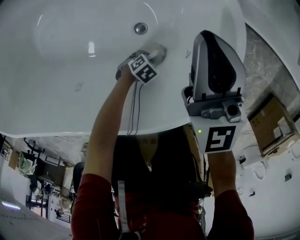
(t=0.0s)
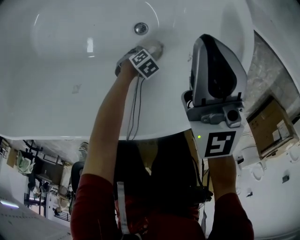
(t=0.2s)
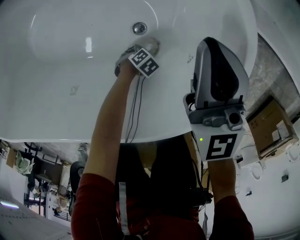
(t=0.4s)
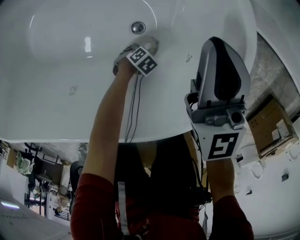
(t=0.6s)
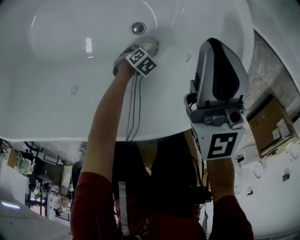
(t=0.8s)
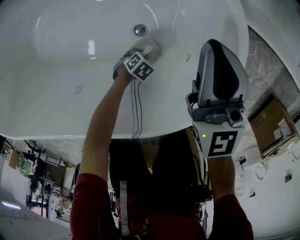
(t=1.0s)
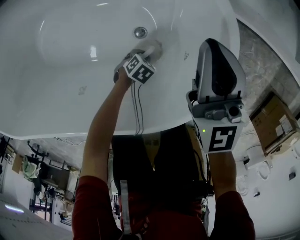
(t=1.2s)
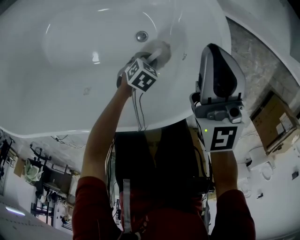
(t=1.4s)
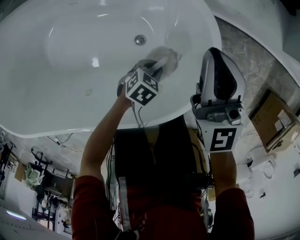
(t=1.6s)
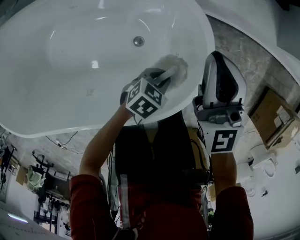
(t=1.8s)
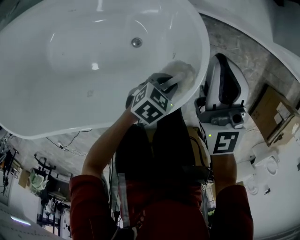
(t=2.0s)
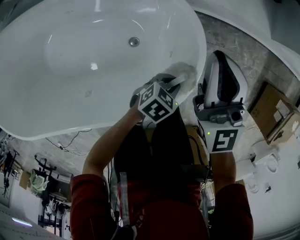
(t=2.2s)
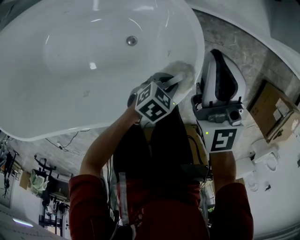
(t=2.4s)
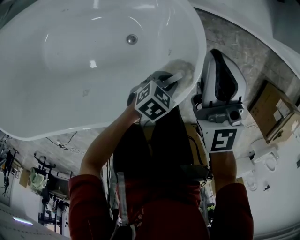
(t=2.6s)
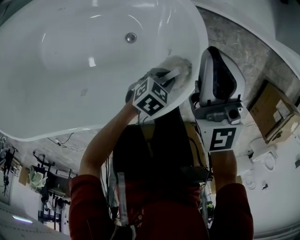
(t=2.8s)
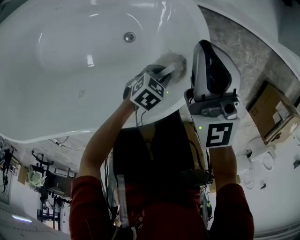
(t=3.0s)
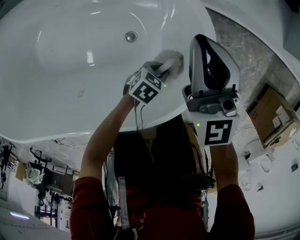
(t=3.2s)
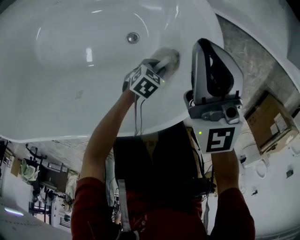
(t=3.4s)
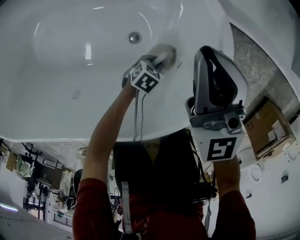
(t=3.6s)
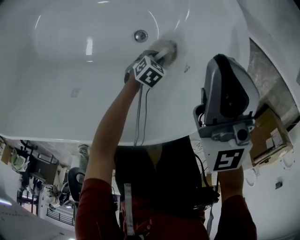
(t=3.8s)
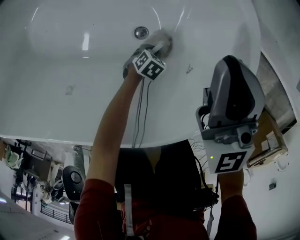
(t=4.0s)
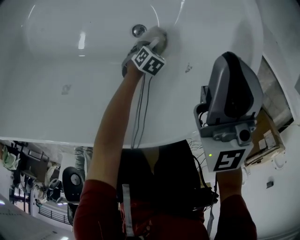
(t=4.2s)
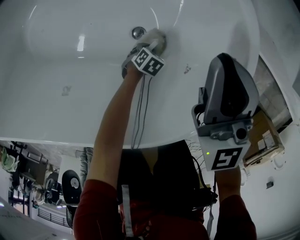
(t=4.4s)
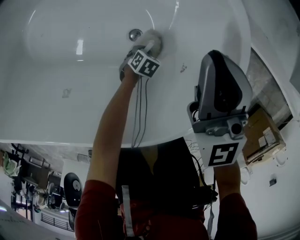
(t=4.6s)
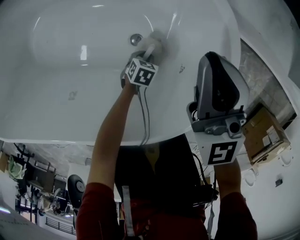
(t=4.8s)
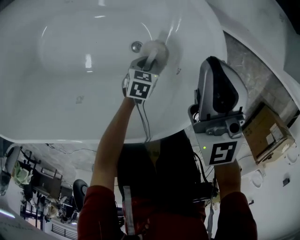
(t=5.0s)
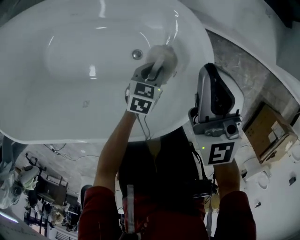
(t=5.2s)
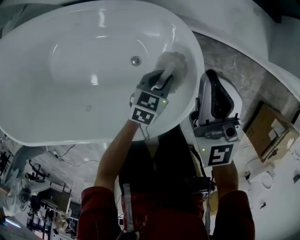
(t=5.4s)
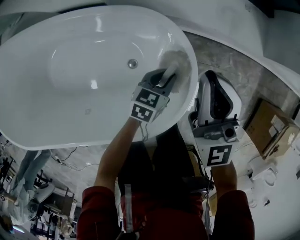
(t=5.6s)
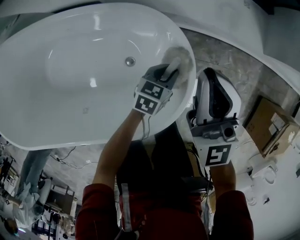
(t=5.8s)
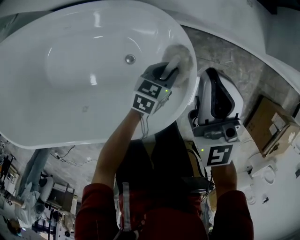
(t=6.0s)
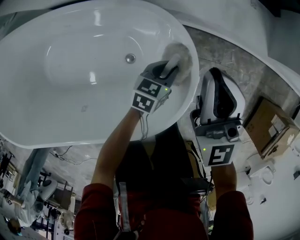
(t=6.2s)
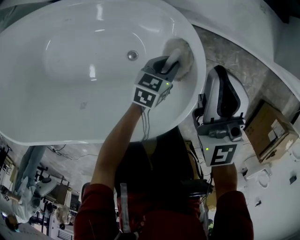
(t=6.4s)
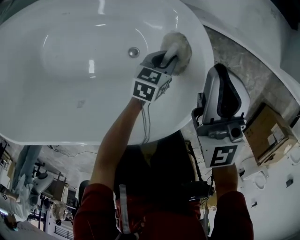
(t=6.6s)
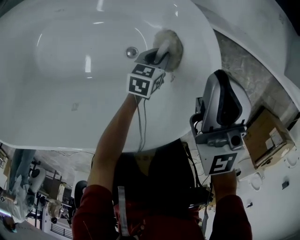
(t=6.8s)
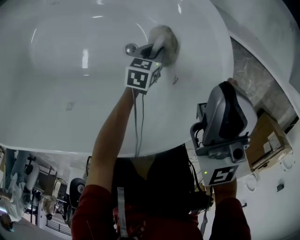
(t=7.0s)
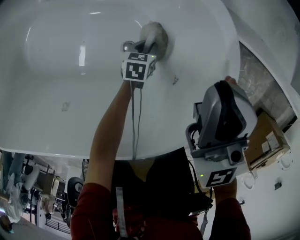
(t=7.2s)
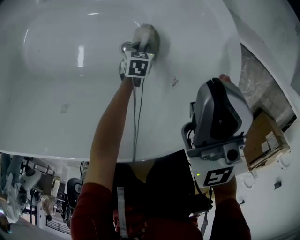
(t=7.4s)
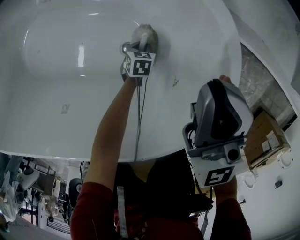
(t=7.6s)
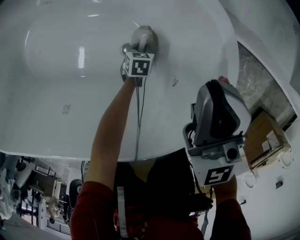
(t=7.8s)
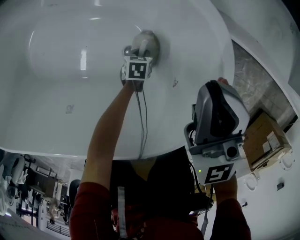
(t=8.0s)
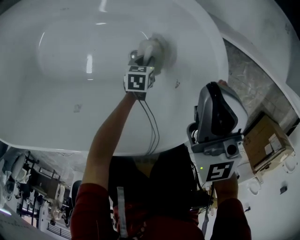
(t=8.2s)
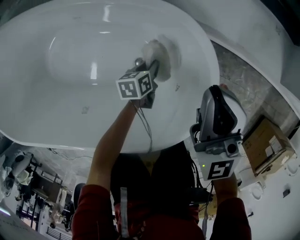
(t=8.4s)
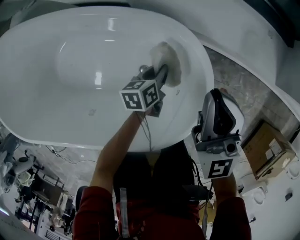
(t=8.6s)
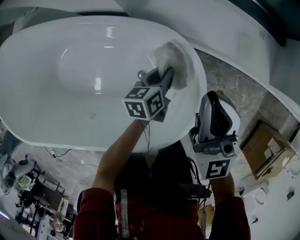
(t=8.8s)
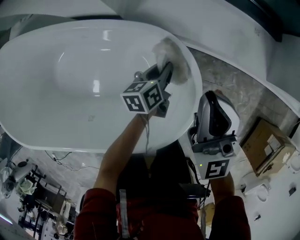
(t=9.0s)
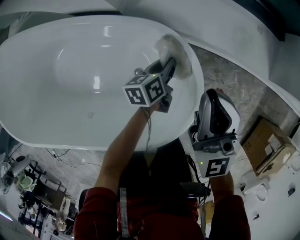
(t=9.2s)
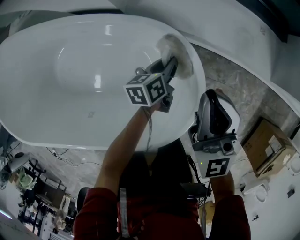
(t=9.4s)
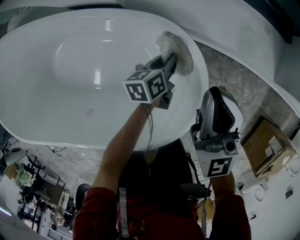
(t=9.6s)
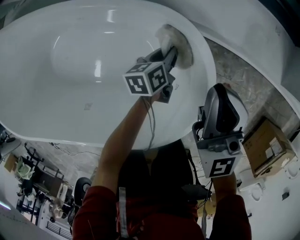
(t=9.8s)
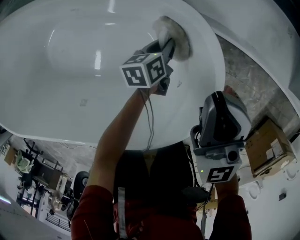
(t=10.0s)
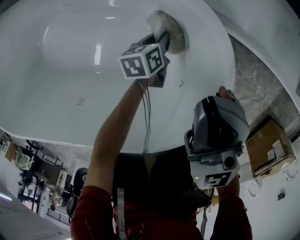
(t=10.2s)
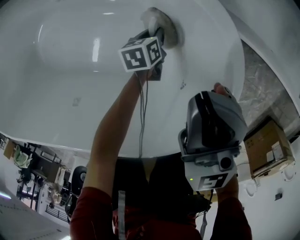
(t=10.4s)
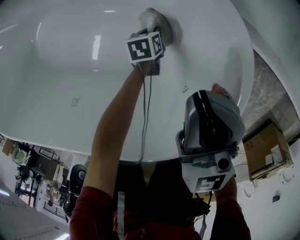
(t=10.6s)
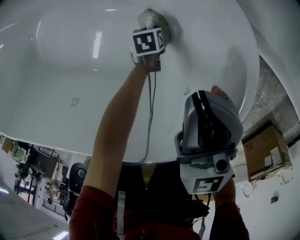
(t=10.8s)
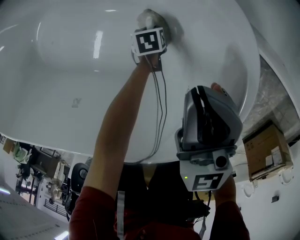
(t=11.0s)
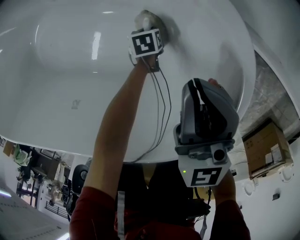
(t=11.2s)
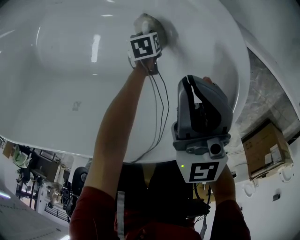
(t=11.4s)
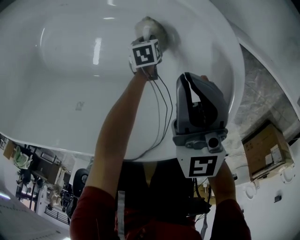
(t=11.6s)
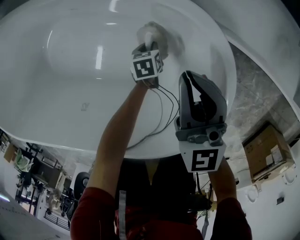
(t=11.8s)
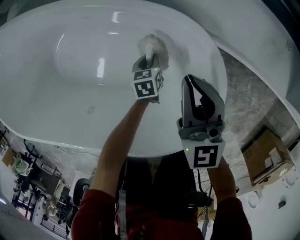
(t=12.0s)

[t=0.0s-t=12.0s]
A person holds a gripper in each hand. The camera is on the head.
t=0.0s to t=1.6s: The left gripper travels upward by approximately 20 cm. The right gripper goes about 10 cm upward.
t=1.6s to t=3.0s: The left gripper heads to the right, covering about 10 cm, and goes upward and returns, approximately 10 cm each way.
t=3.0s to t=4.4s: The right gripper goes about 10 cm downward. The left gripper is displaced downward by about 25 cm, and changes its angle by approximately 30 degrees.
t=4.4s to t=6.0s: The right gripper shifts some 15 cm upward, while the left gripper moves upward, about 35 cm, and tilts its fingers approximately 40 degrees upward.
t=6.0s to t=7.6s: The left gripper heads downward, covering roughly 35 cm, and angles its fingers downward, by about 30 degrees; the right gripper moves downward and to the left, some 15 cm.
t=7.6s to t=9.0s: The left gripper is displaced upward by about 35 cm, and tilts its fingers roughly 30 degrees upward. Meanwhile the right gripper is displaced upward by approximately 15 cm.
t=9.0s to t=10.4s: The right gripper travels downward by approximately 15 cm, while the left gripper goes approximately 25 cm downward, and changes its angle by roughly 20 degrees.
t=10.4s to t=12.0s: The left gripper travels upward by roughly 10 cm.

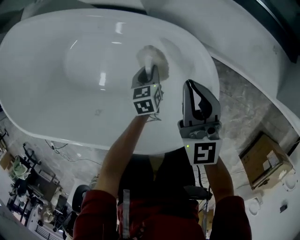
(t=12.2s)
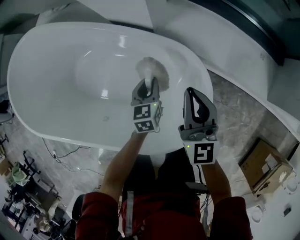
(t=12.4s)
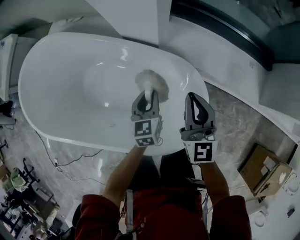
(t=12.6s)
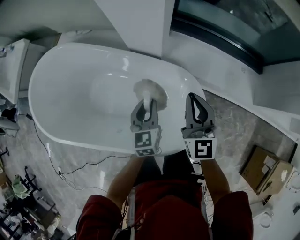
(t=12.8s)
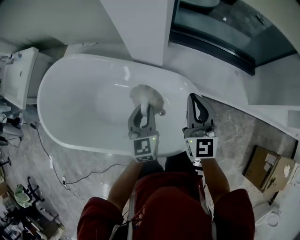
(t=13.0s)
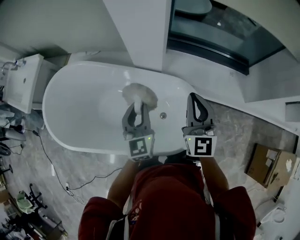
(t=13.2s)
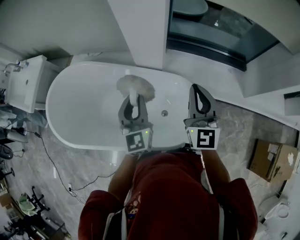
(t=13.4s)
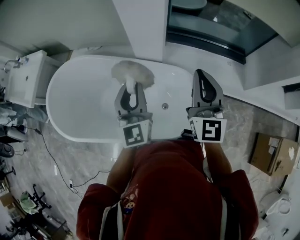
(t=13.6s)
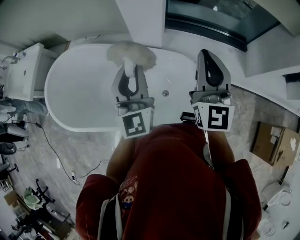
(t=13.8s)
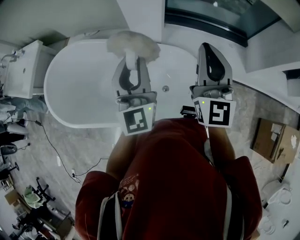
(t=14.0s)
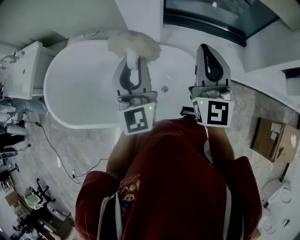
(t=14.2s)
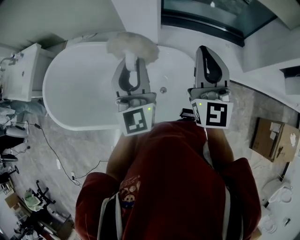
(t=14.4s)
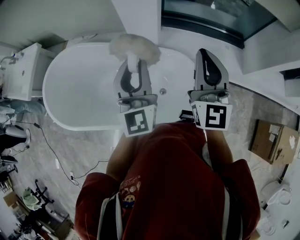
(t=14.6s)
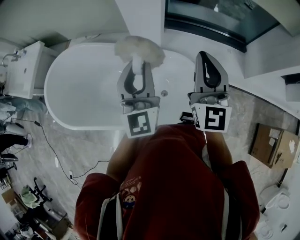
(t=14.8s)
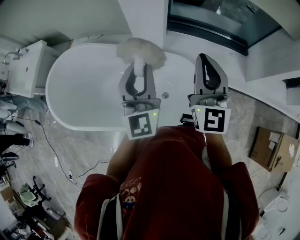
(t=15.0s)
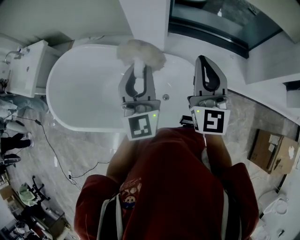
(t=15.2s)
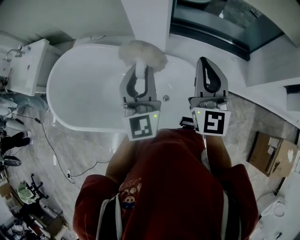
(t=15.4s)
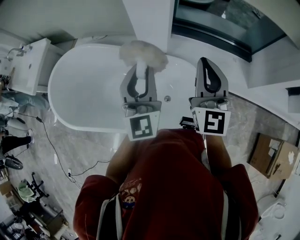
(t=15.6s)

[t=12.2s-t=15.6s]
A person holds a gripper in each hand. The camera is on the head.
t=12.2s to t=13.8s: The two grippers go some 60 cm upward. The right gripper swivels approximately 30 degrees, while the left gripper tips its fingers upward by some 60 degrees.
t=13.8s to t=15.6s: The grippers move only a little.

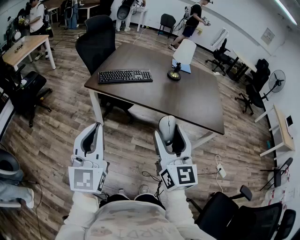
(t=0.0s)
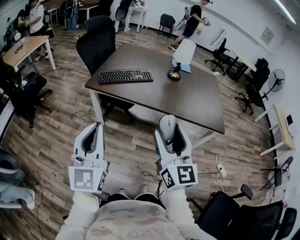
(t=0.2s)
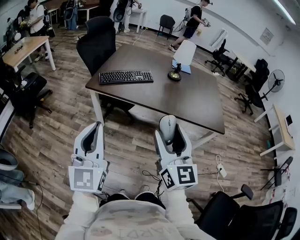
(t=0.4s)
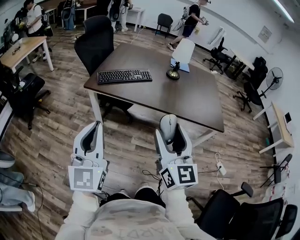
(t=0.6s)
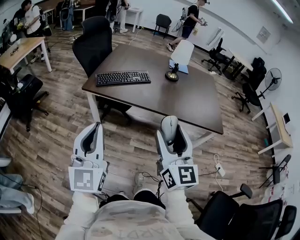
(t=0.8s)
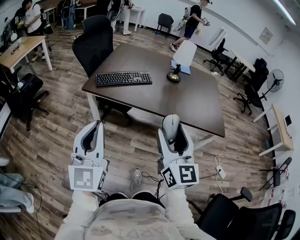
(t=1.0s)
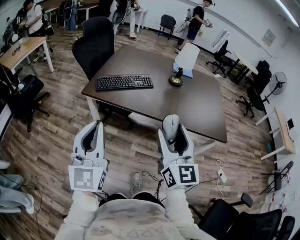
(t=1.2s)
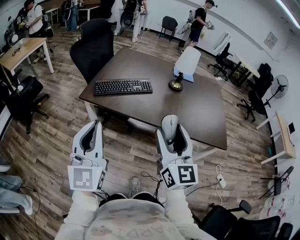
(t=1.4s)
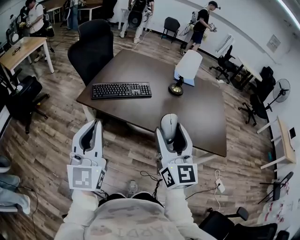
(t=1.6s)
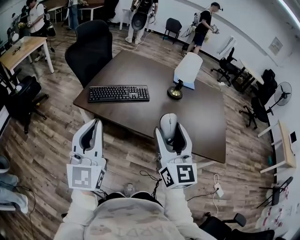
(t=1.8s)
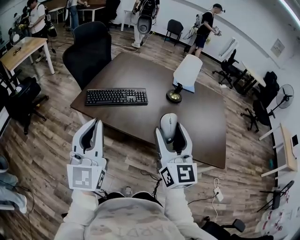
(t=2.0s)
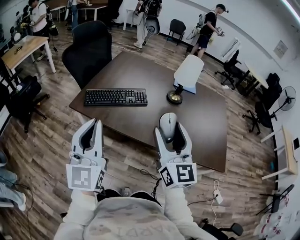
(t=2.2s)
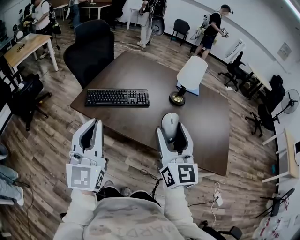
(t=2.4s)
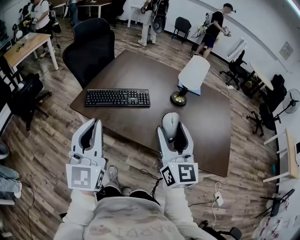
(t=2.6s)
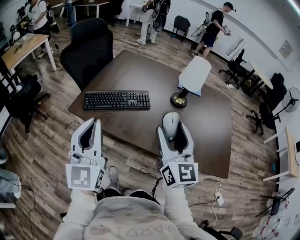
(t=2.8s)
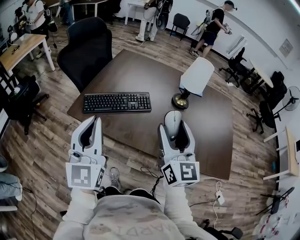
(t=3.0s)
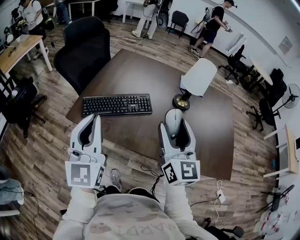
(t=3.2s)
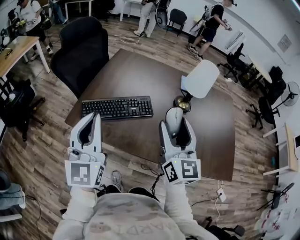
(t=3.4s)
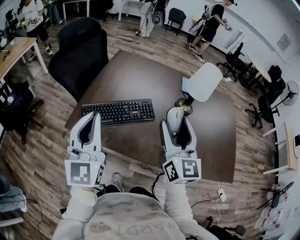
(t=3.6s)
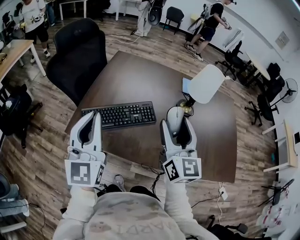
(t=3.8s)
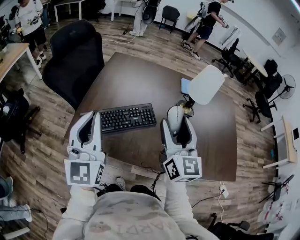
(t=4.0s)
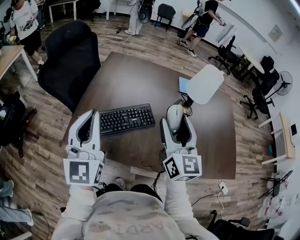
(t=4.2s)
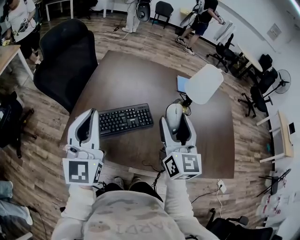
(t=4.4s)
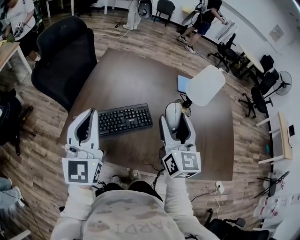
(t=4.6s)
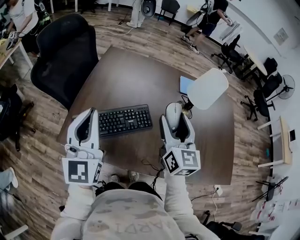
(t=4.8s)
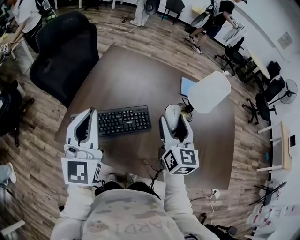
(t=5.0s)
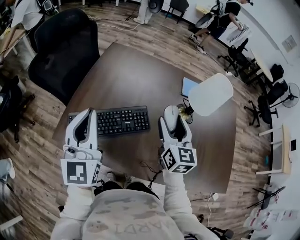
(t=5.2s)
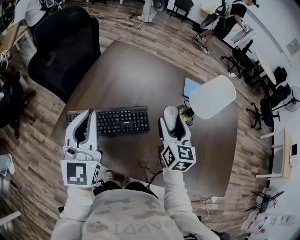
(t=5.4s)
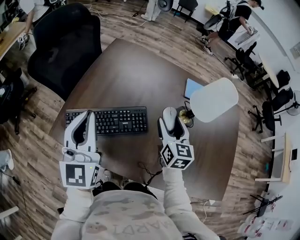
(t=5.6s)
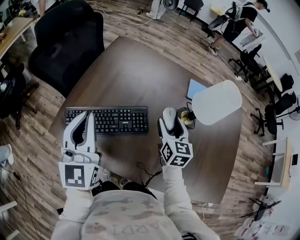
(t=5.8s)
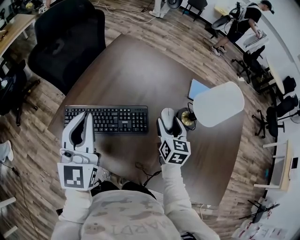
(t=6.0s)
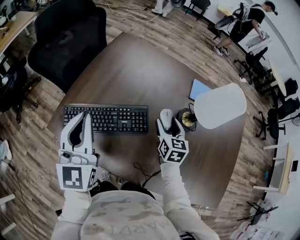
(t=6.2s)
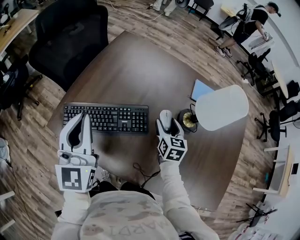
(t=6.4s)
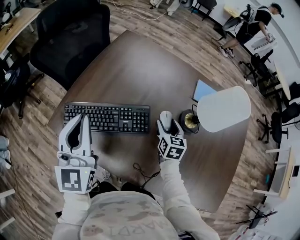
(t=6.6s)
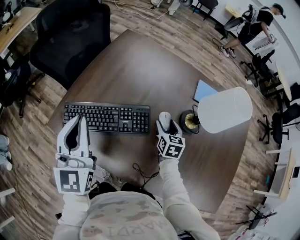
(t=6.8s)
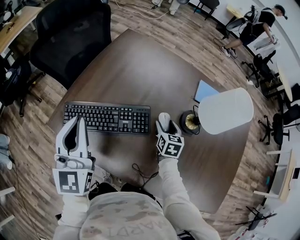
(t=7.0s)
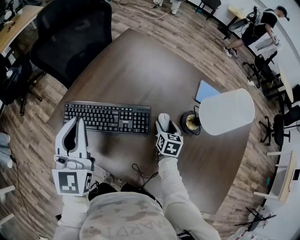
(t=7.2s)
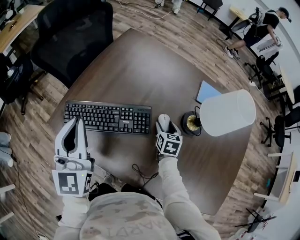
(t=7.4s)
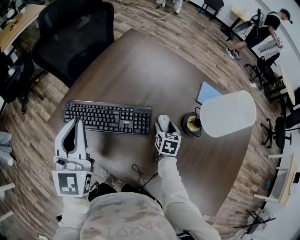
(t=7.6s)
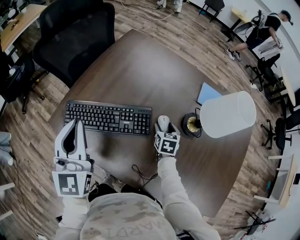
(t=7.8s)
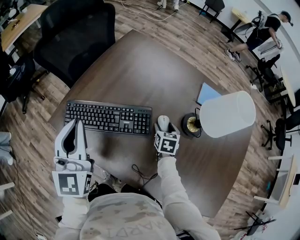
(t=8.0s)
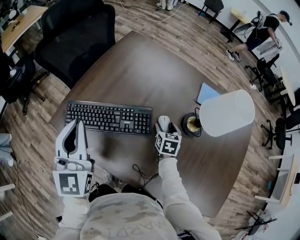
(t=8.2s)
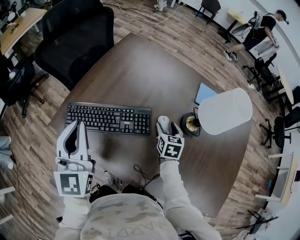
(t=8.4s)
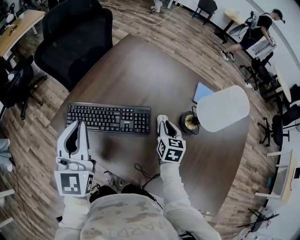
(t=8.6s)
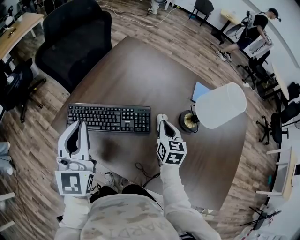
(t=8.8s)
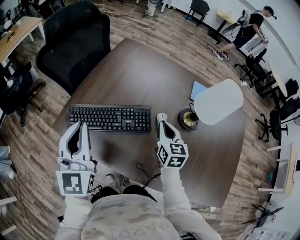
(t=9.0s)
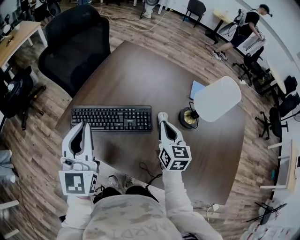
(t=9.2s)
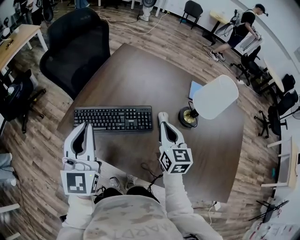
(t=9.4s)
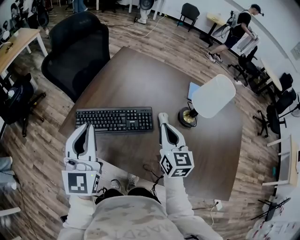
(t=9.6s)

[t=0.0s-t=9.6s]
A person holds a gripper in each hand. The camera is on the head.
t=0.0s to t=1.6s: The grippers both shift forward by roughly 20 cm.
t=1.6s to t=3.2s: The grippers both shift forward by approximately 25 cm.
t=3.2s to t=4.8s: Both grippers travel together forward, roughly 20 cm.
t=4.8s to t=6.4s: The right gripper shifts roughly 25 cm downward and forward, and changes its angle by approximately 30 degrees, while the left gripper goes about 5 cm downward.
t=6.4s to t=8.0s: The right gripper heads downward, covering some 10 cm.
t=8.0s to t=9.6s: The left gripper moves backward, approximately 10 cm, while the right gripper travels upward and backward by approximately 25 cm, tilts its fingers some 40 degrees upward, and closes.
